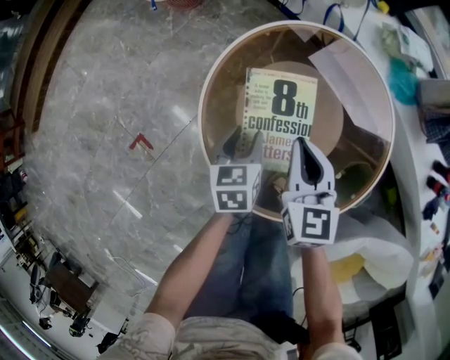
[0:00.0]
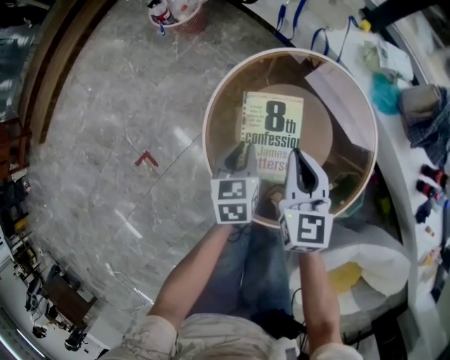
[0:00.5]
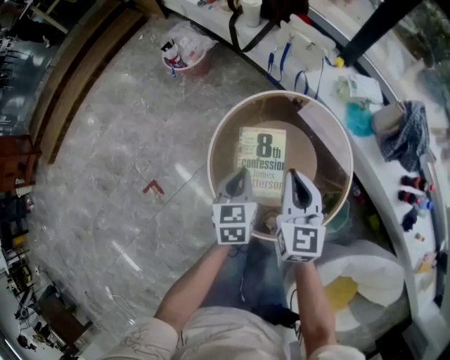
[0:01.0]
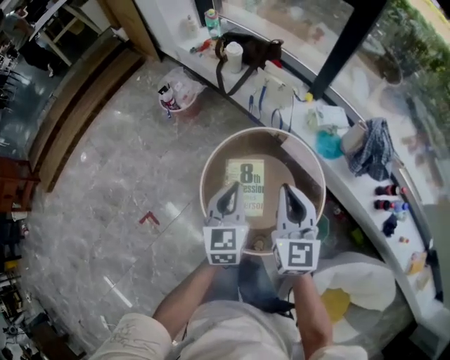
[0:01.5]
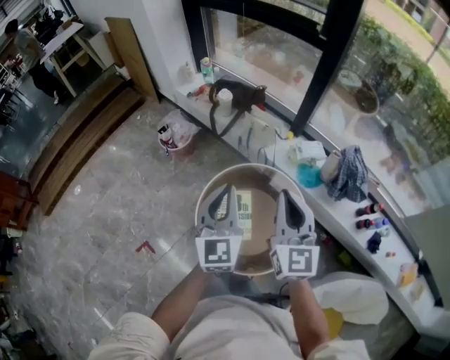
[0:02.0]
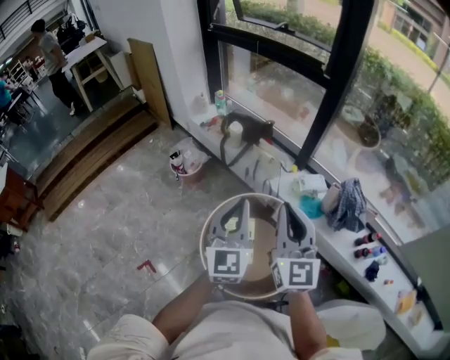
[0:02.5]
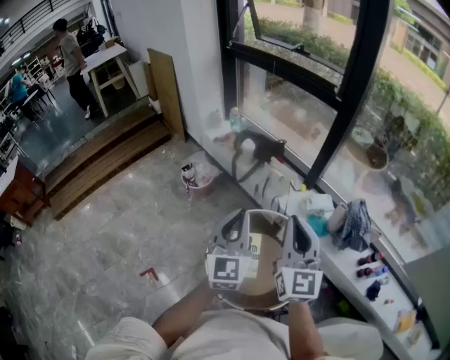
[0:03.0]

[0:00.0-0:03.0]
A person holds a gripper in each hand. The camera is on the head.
0:00.0 to 0:01.5: The grippers both shift upward by approximately 35 cm. The left gripper changes its angle by about 30 degrees, and closes. Meanwhile the right gripper rotates about 20 degrees.
0:01.5 to 0:03.0: Both grippers travel together upward, approximately 20 cm. The right gripper turns by roughly 20 degrees; the left gripper swivels about 30 degrees.

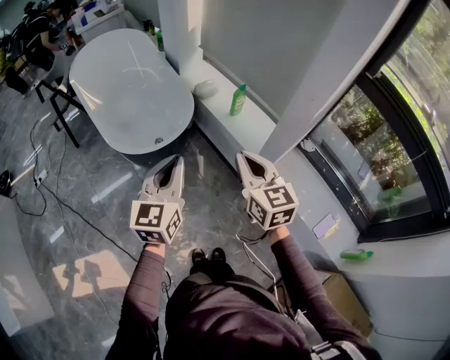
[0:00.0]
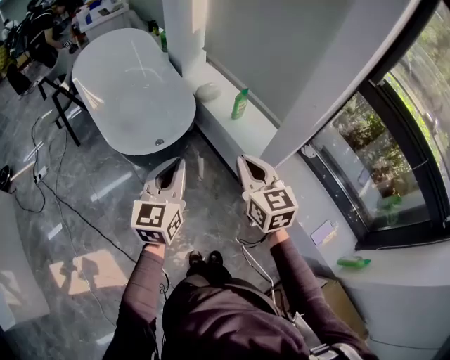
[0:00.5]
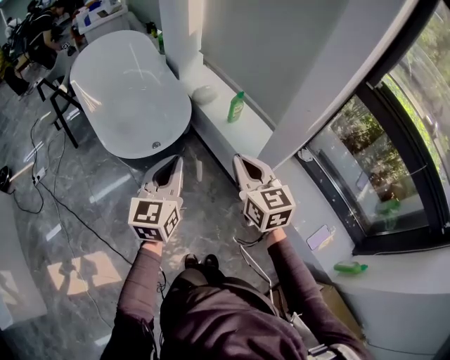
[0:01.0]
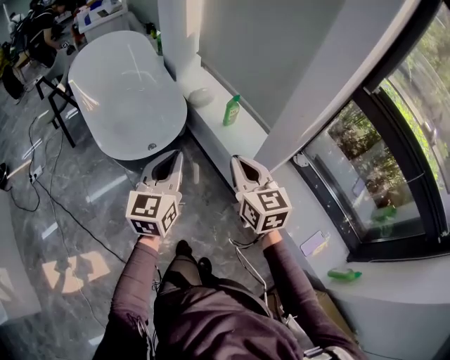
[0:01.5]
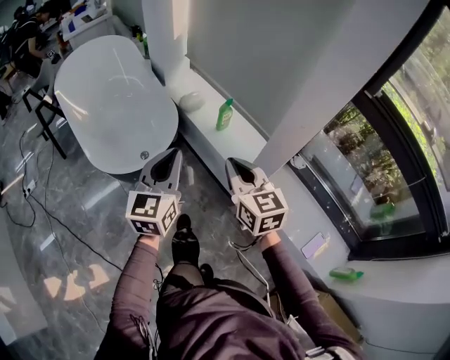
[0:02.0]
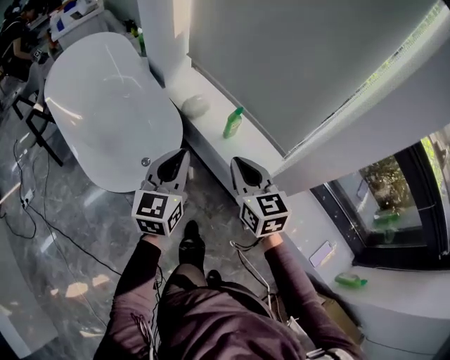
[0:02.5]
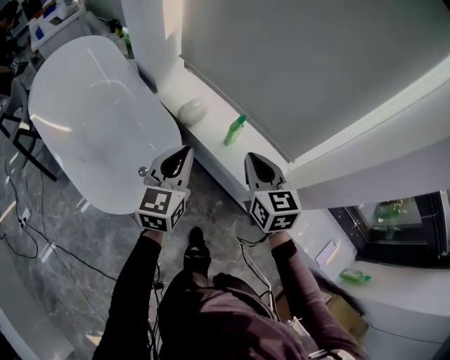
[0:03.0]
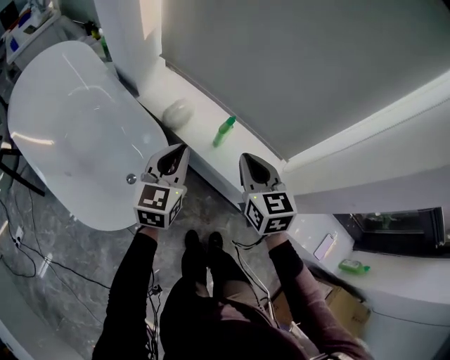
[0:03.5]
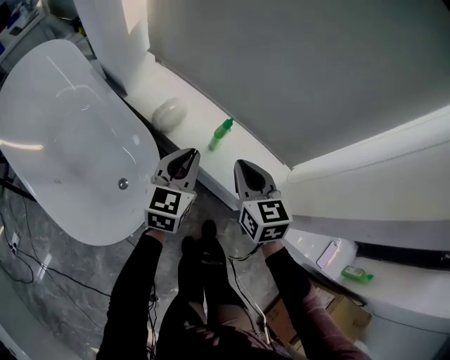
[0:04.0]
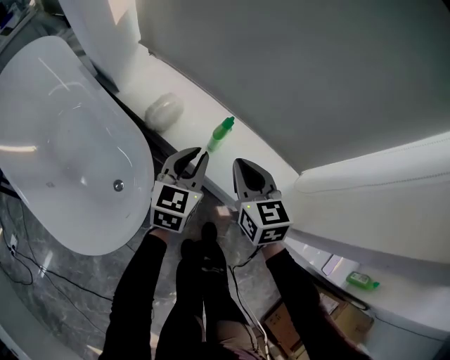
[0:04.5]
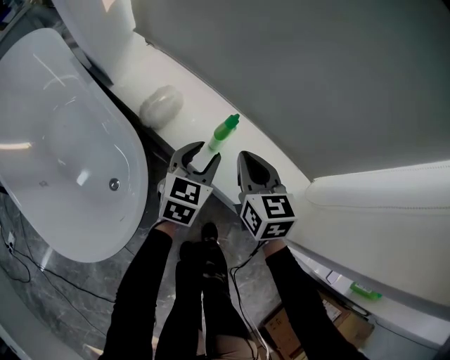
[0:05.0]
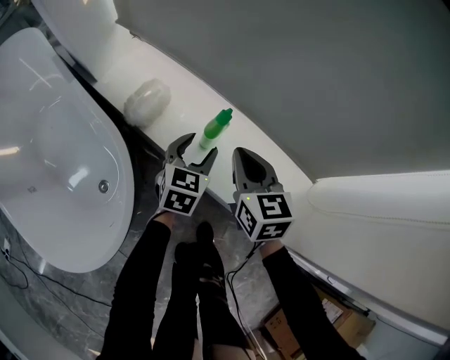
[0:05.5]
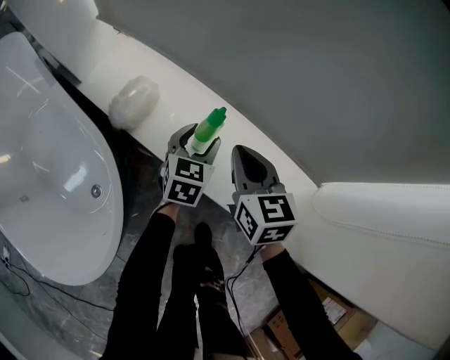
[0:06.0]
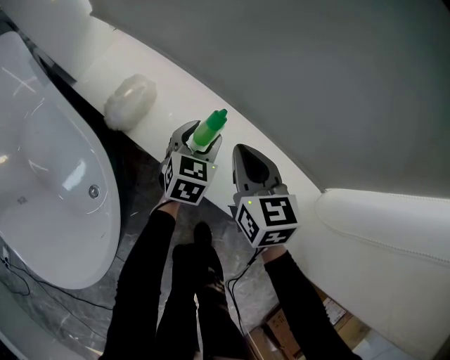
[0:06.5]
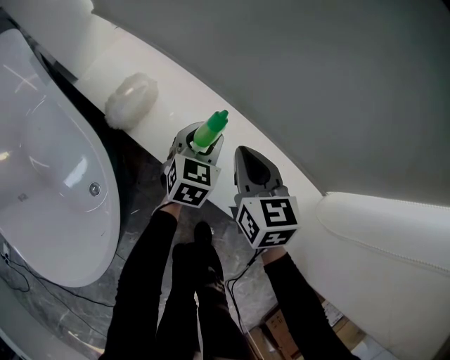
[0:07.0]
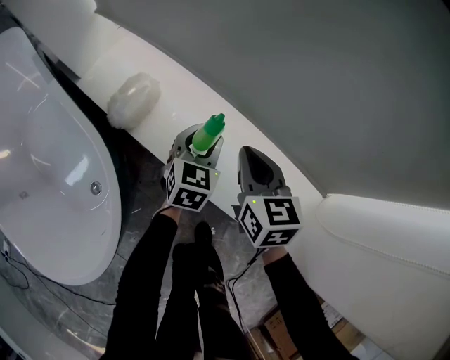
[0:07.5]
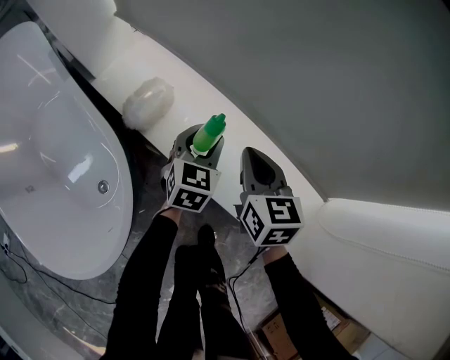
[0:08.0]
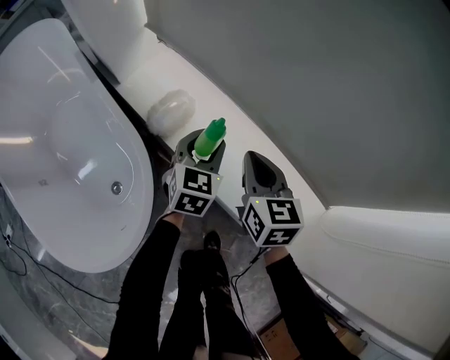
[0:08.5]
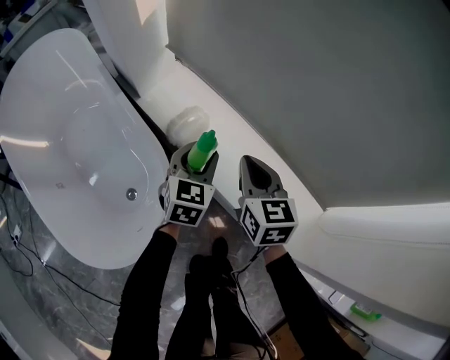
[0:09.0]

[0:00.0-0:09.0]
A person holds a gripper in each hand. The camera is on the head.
0:00.0 to 0:02.0: The right gripper moves forward, some 10 cm, while the left gripper shifts about 10 cm forward and to the right.
0:02.0 to 0:04.5: The two grippers go approximately 35 cm forward and downward. The left gripper changes its angle by about 30 degrees, while the right gripper turns by about 20 degrees.
0:04.5 to 0:07.0: The right gripper travels downward and forward by about 15 cm, while the left gripper moves downward, forward and to the right, some 25 cm, and opens up.
0:07.0 to 0:09.0: The grippers both shift to the left and upward by roughly 20 cm.

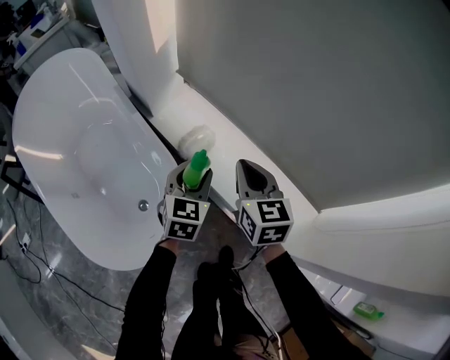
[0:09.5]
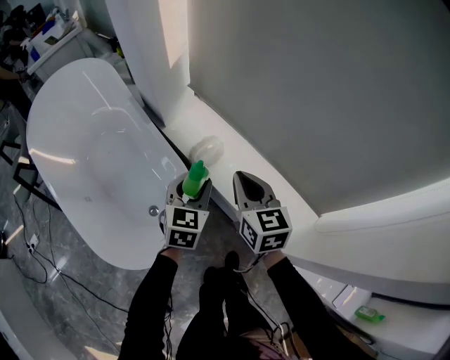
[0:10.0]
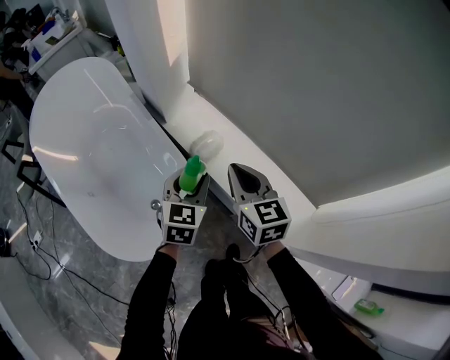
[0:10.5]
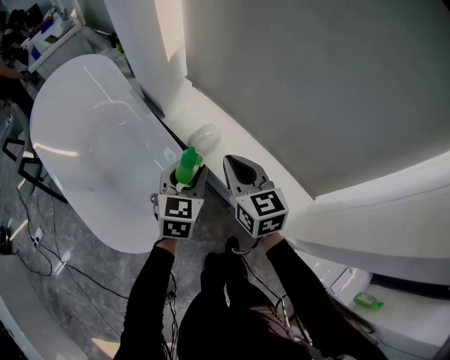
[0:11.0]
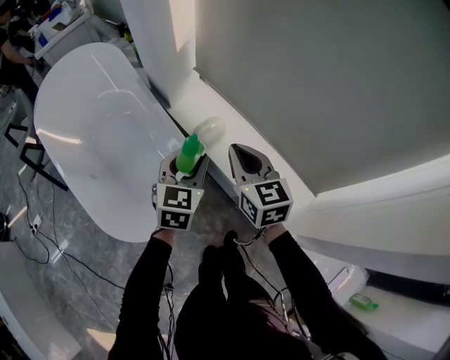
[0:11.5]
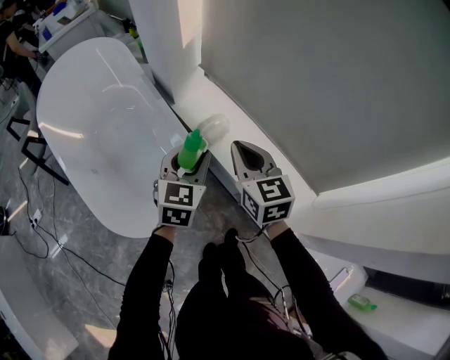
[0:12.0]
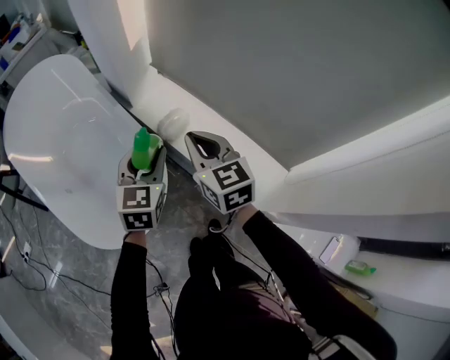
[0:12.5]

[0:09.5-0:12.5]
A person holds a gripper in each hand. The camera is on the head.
0:09.5 to 0:11.0: The left gripper travels upward by roughly 10 cm, while the right gripper travels upward and to the left by about 10 cm.
0:11.0 to 0:12.5: The left gripper shifts some 5 cm to the left.

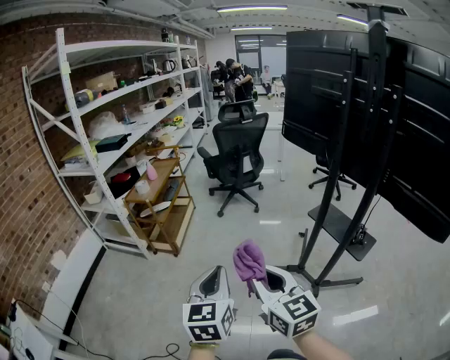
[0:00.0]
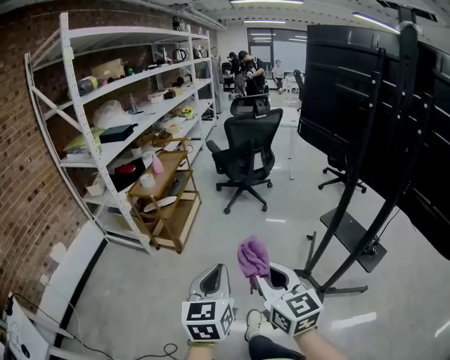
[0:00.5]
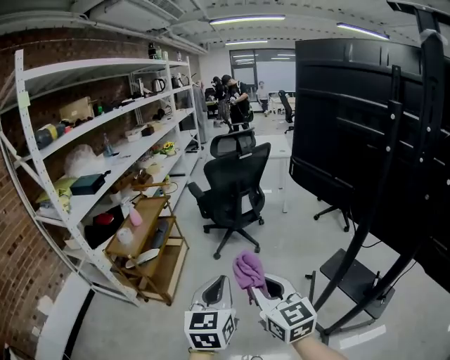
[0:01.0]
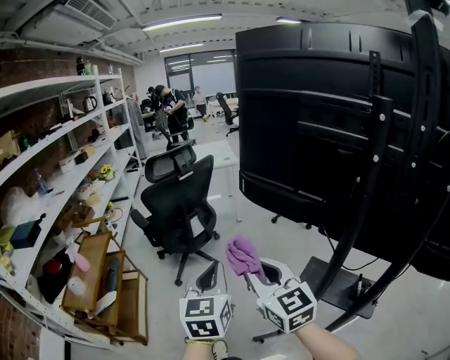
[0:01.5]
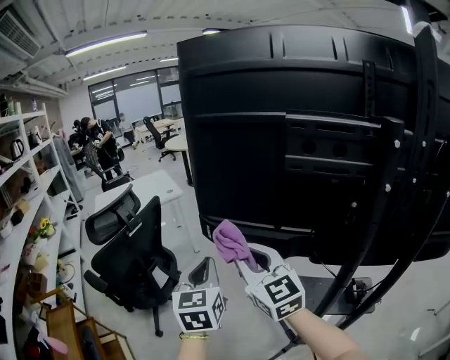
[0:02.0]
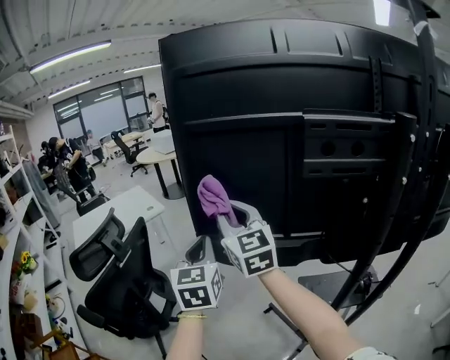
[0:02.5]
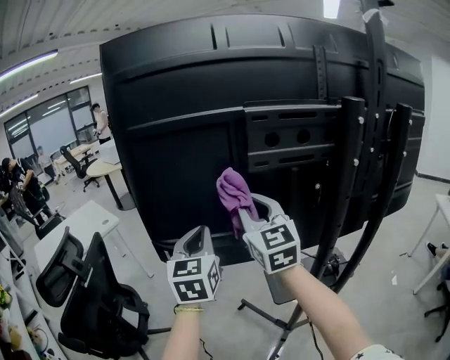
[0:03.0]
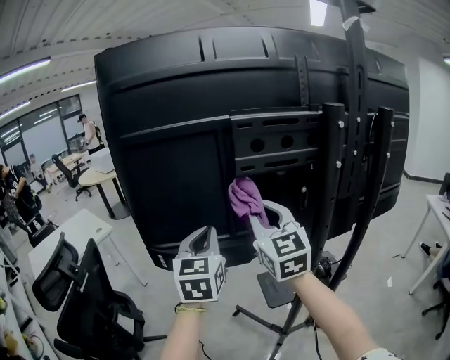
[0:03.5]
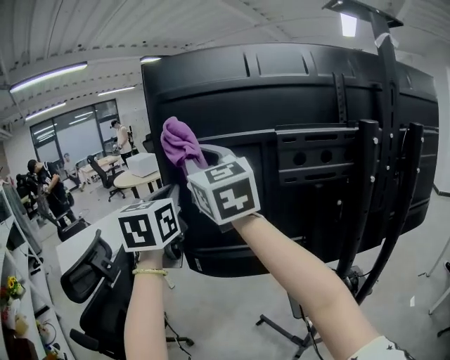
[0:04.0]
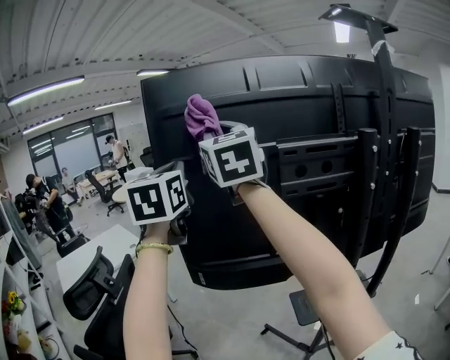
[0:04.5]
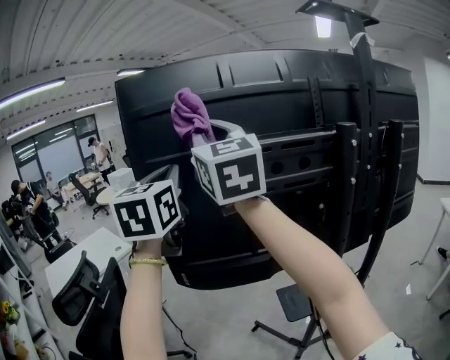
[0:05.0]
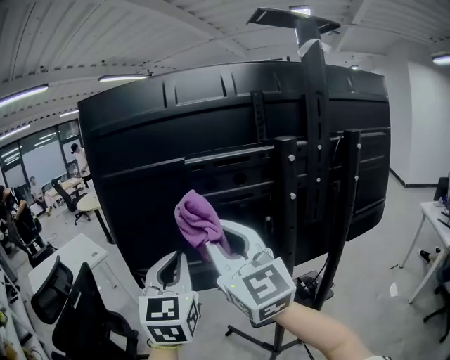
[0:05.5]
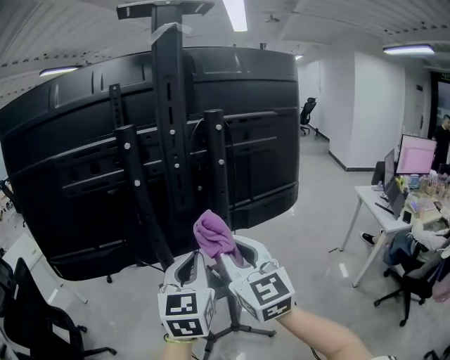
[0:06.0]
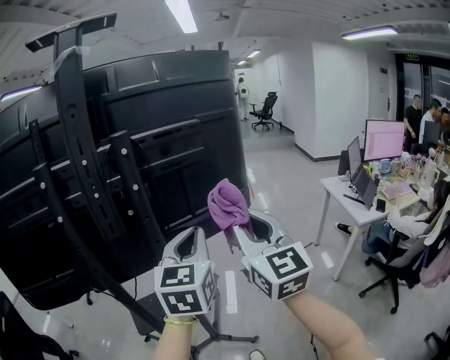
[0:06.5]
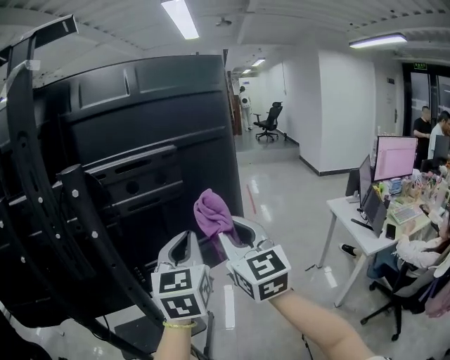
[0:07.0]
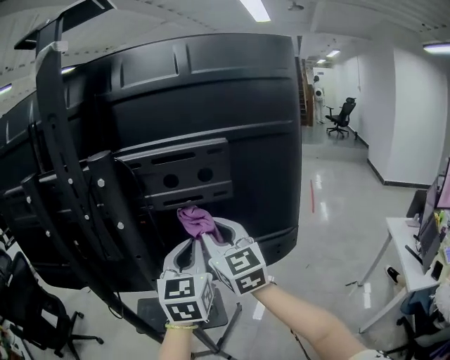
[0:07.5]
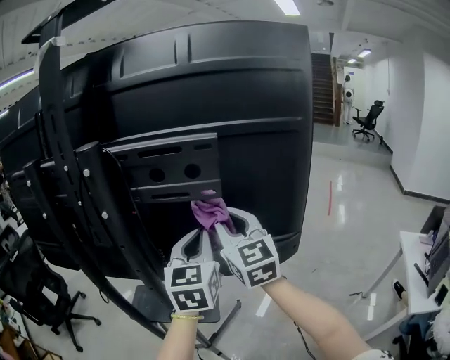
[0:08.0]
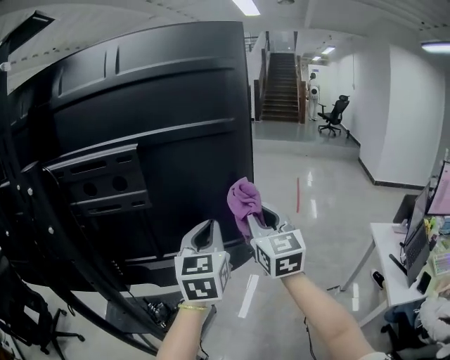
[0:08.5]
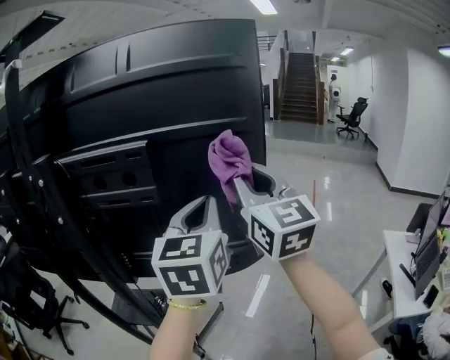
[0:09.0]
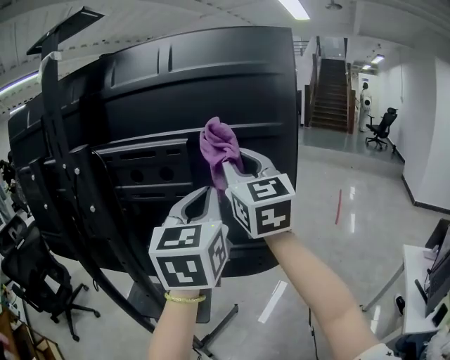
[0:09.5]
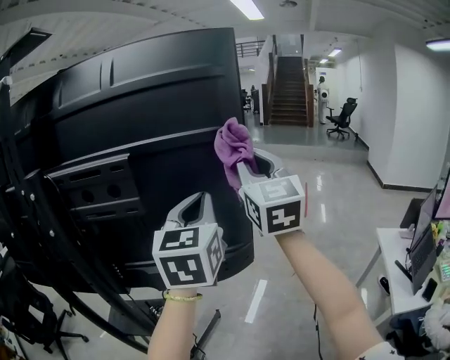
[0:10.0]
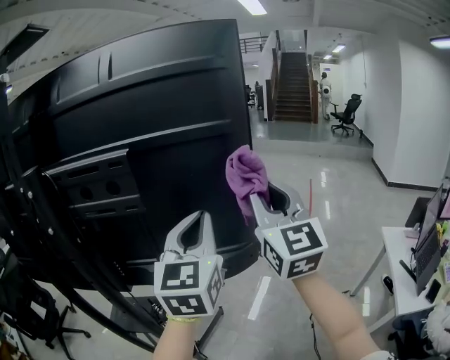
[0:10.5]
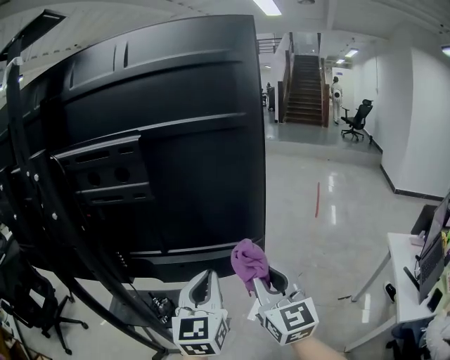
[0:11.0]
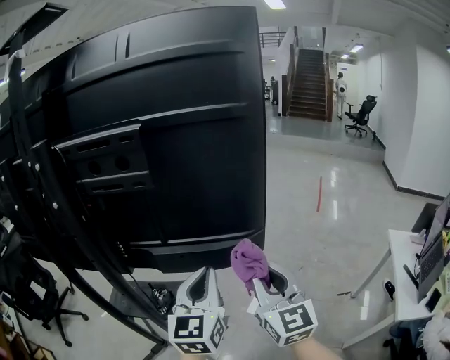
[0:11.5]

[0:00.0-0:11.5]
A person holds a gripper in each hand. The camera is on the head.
0:00.0 to 0:02.0: The pair of grippers is taken about 80 cm. The right gripper changes its angle by some 40 degrees. The left gripper changes its angle by approximately 40 degrees.
0:02.0 to 0:04.0: The two grippers go about 25 cm upward. The right gripper swivels some 20 degrees. The left gripper rotates roughly 20 degrees.
0:04.0 to 0:06.0: Both grippers are carried to the right and backward, roughly 60 cm. The left gripper rotates some 20 degrees. The right gripper heads downward, covering about 20 cm, and changes its angle by about 30 degrees.
0:06.0 to 0:07.5: The right gripper changes place by approximately 35 cm. Meanwhile the left gripper ends up some 30 cm from where it was.
0:07.5 to 0:09.5: The left gripper is displaced to the right and upward by roughly 20 cm. Meanwhile the right gripper moves upward and to the right, about 20 cm.
0:09.5 to 0:11.5: The left gripper goes approximately 20 cm downward. Meanwhile the right gripper shifts approximately 30 cm downward, backward and to the right.
